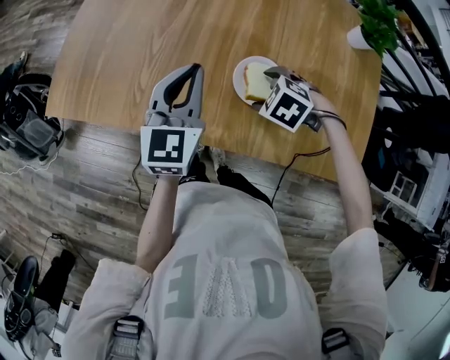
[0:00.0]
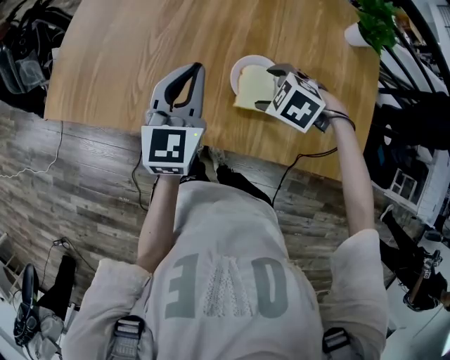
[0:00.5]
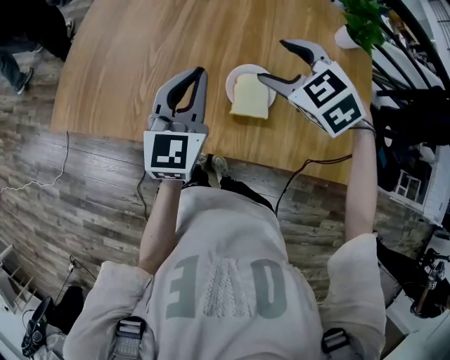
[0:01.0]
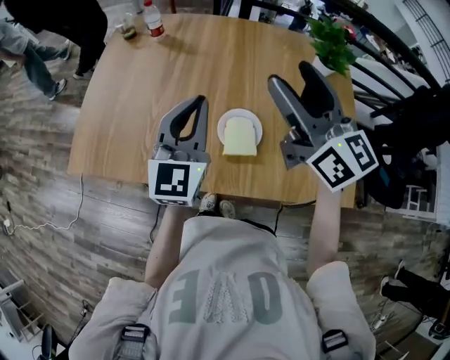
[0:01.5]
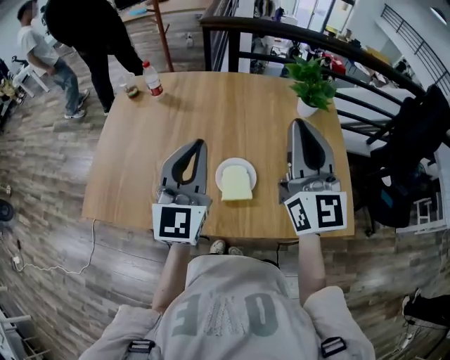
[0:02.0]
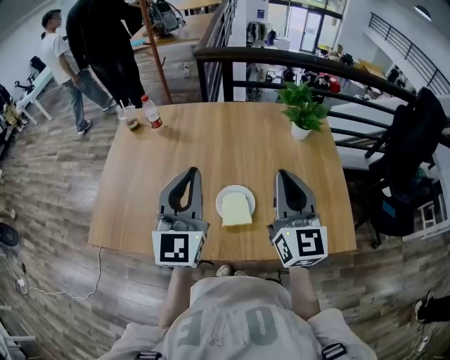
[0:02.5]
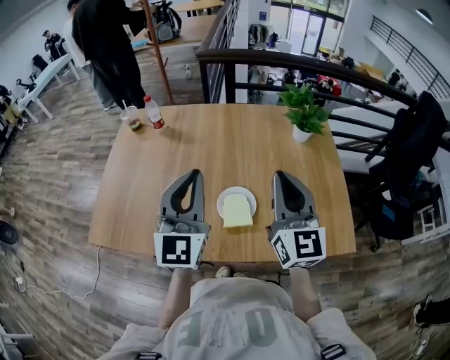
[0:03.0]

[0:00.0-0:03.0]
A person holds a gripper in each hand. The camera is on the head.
0:00.0 to 0:01.5: The right gripper goes roughly 35 cm upward, and angles its fingers upward, by roughly 90 degrees. Meanwhile the left gripper is displaced upward by about 10 cm.
0:01.5 to 0:03.0: The right gripper moves to the right, about 5 cm, changes its angle by some 30 degrees, and closes up, while the left gripper heads upward, covering roughly 10 cm.

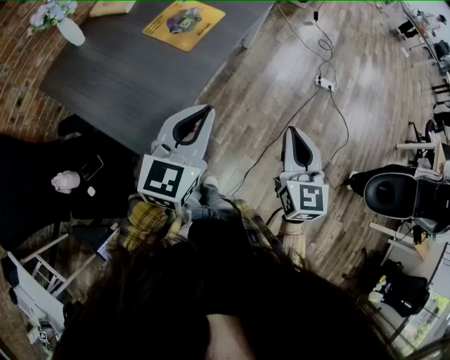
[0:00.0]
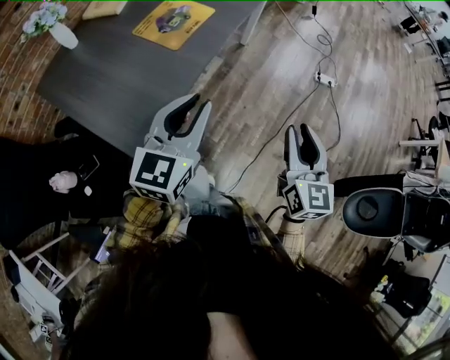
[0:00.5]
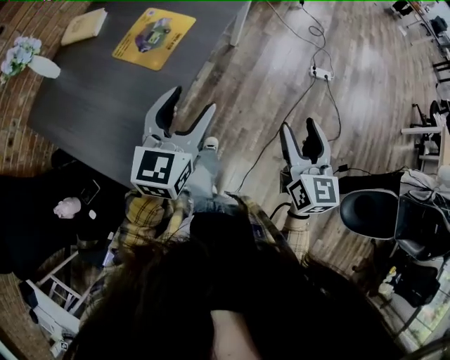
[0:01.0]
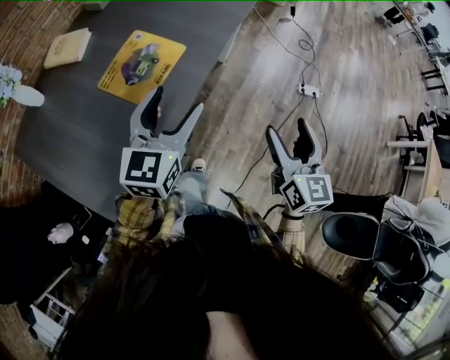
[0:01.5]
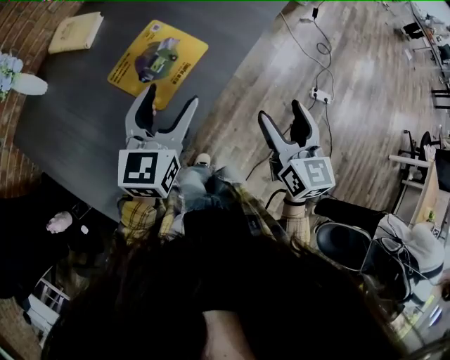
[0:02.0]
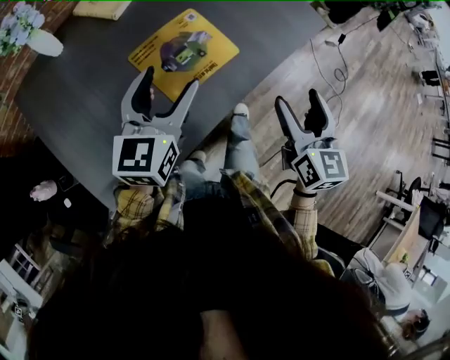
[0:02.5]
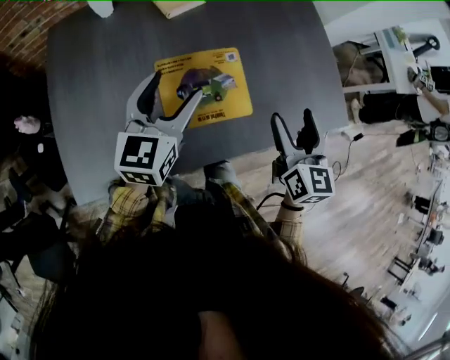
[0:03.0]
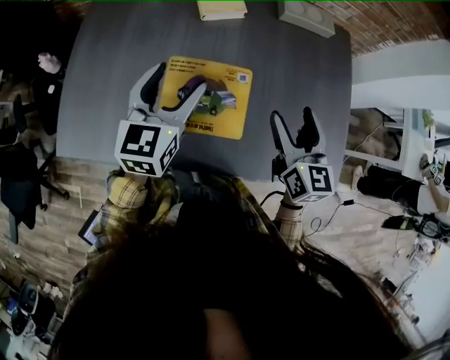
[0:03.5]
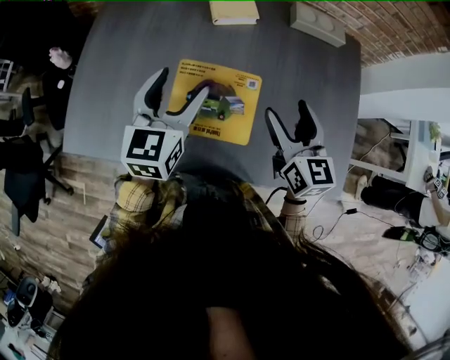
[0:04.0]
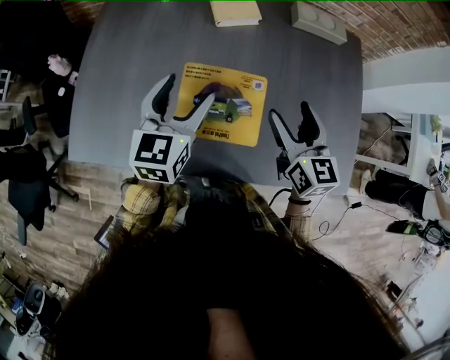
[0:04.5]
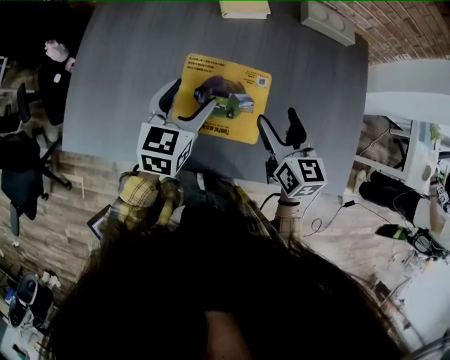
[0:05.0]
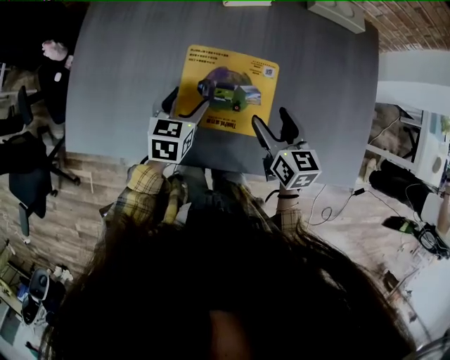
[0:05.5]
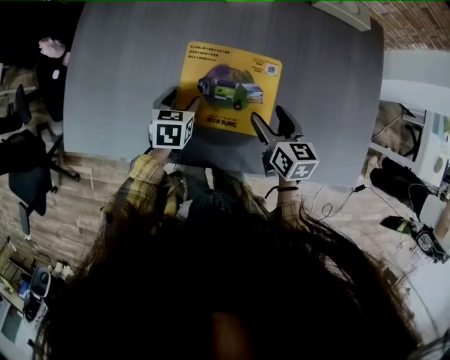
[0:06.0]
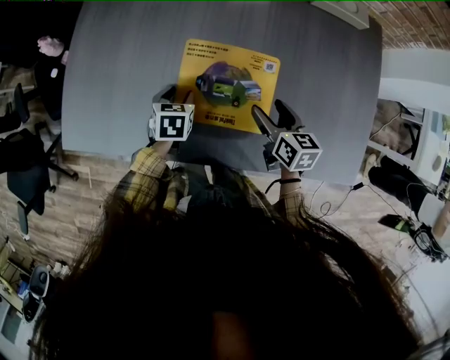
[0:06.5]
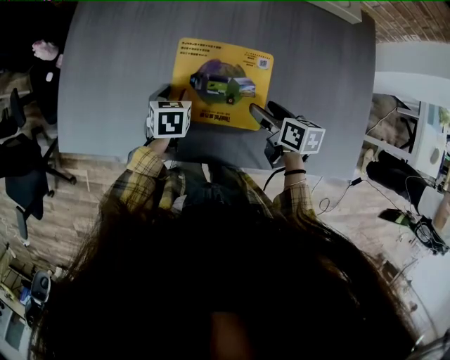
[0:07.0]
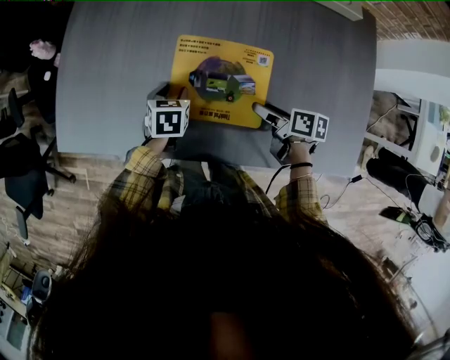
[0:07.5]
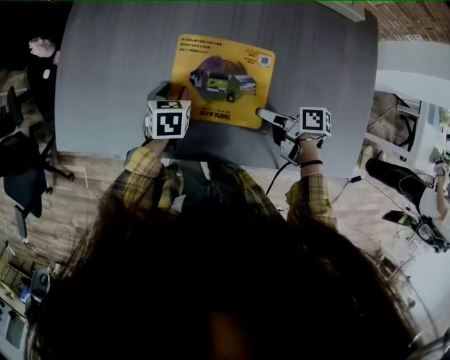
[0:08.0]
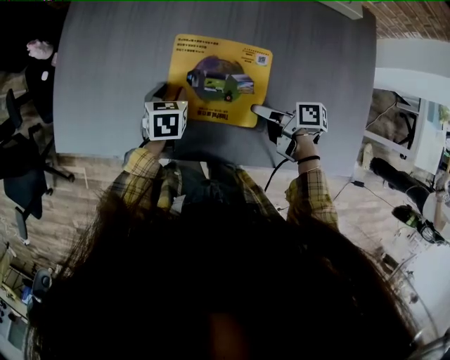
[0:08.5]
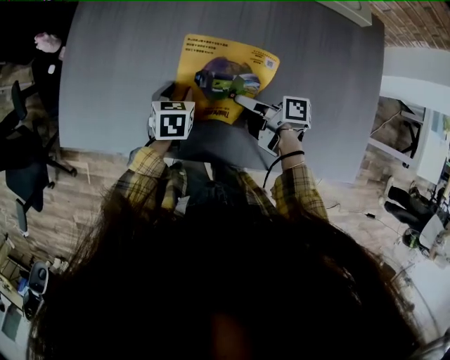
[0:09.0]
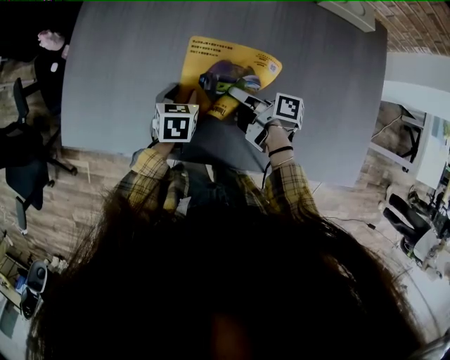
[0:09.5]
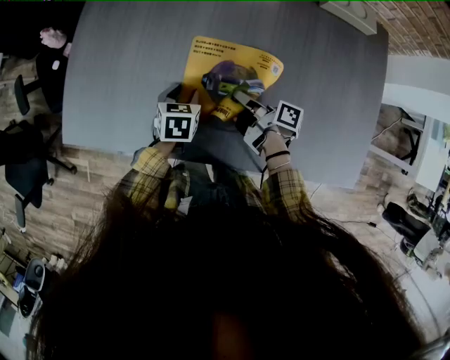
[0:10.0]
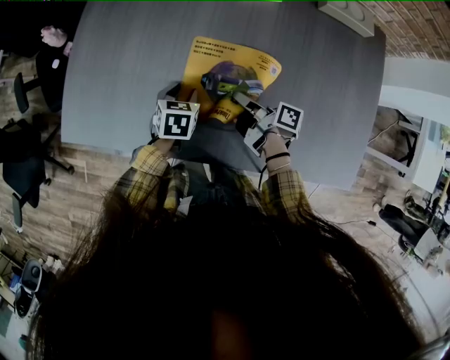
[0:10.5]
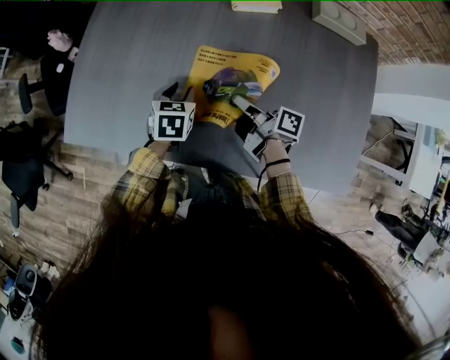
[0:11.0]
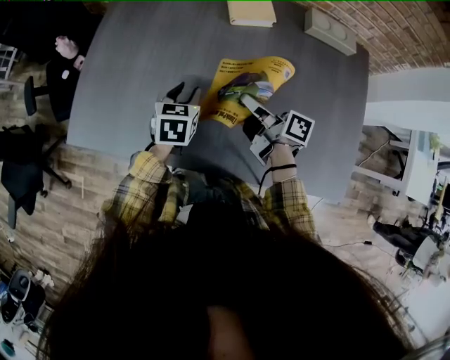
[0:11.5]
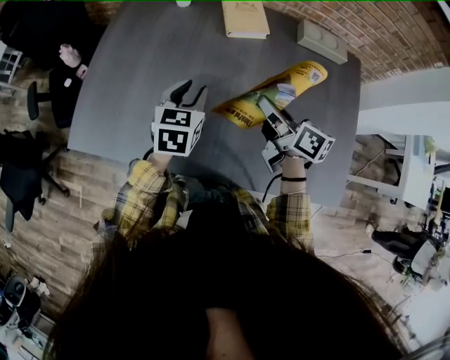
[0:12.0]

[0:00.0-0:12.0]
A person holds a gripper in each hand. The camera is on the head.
0:00.0 to 0:02.0: The two grippers go some 35 cm forward. The right gripper opens up. Meanwhile the left gripper opens.
0:02.0 to 0:04.0: The left gripper shifts by roughly 15 cm, and changes its angle by approximately 60 degrees. The right gripper ends up roughly 40 cm from where it was, and changes its angle by about 70 degrees.
0:04.0 to 0:06.0: Both grippers travel together downward, some 25 cm. The right gripper rotates roughly 30 degrees. The left gripper points its fingers approximately 40 degrees further downward.
0:06.0 to 0:08.0: The right gripper moves downward, roughly 5 cm, and swivels about 50 degrees.
0:08.0 to 0:10.0: The right gripper moves forward and to the left, roughly 10 cm, rotates about 30 degrees, and closes up.
0:10.0 to 0:12.0: Both grippers travel together upward, some 20 cm. The right gripper rotates around the line of its fingers by about 40 degrees, counterclockwise from behind; the left gripper changes its angle by roughly 30 degrees.

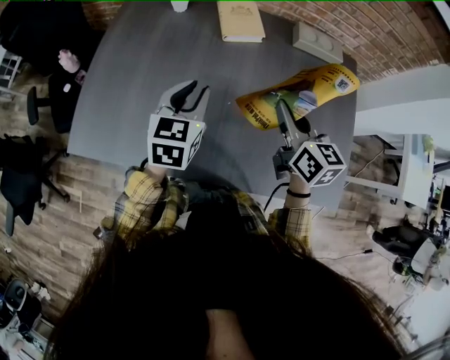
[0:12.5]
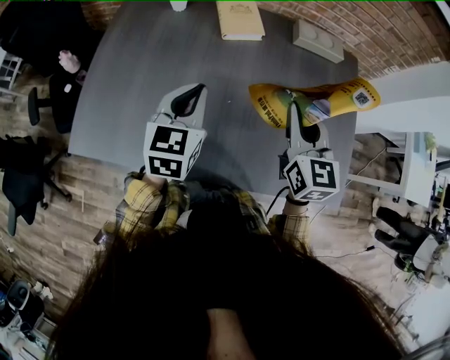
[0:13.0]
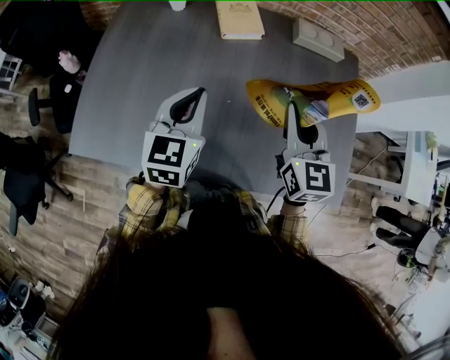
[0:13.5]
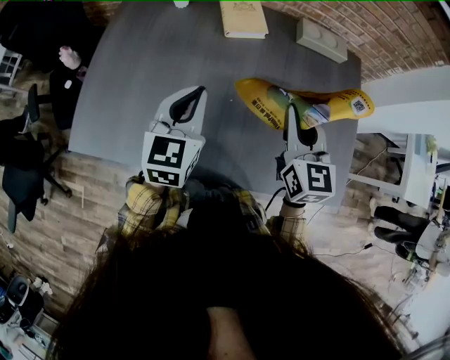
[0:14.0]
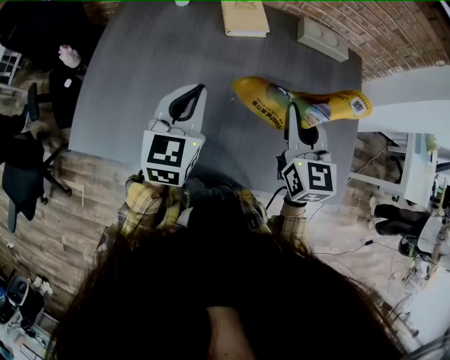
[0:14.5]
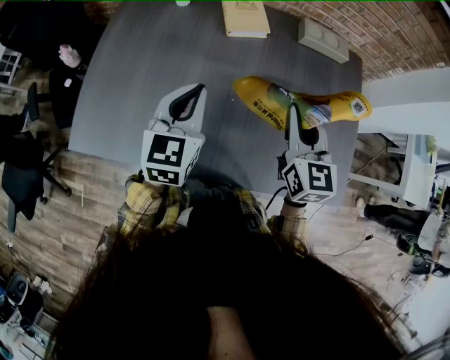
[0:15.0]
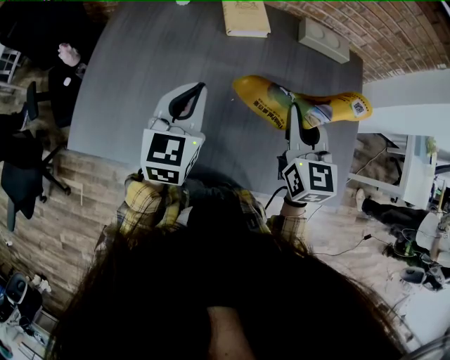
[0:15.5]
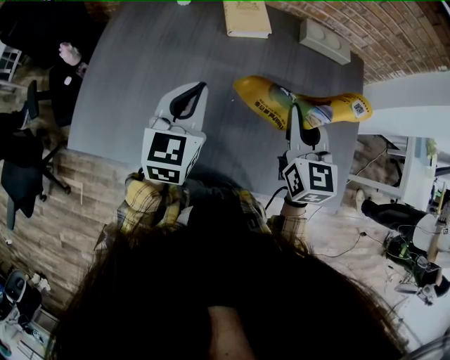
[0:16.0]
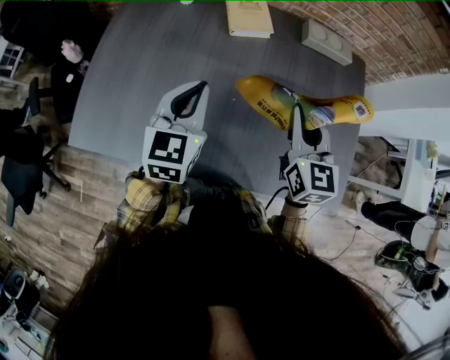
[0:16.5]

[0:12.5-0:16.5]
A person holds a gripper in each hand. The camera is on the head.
0:12.5 to 0:14.5: The right gripper changes its angle by about 20 degrees.
0:14.5 to 0:16.5: The two grippers keep their place.

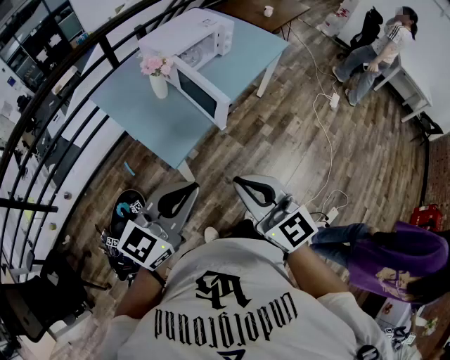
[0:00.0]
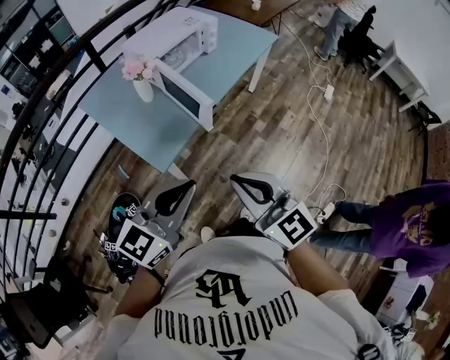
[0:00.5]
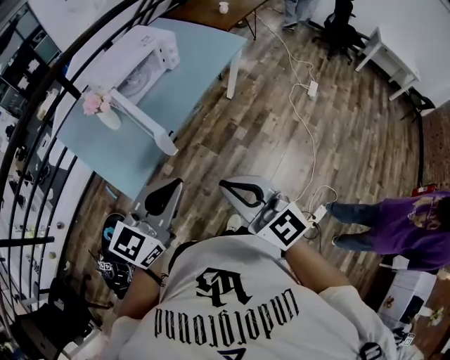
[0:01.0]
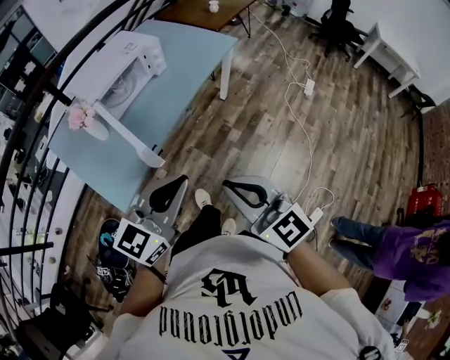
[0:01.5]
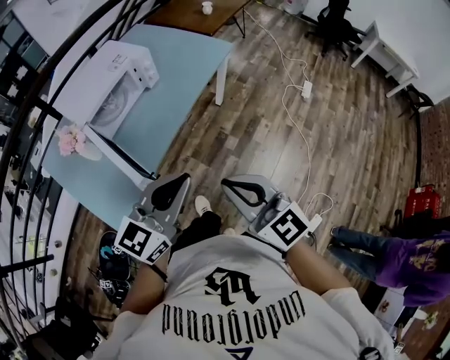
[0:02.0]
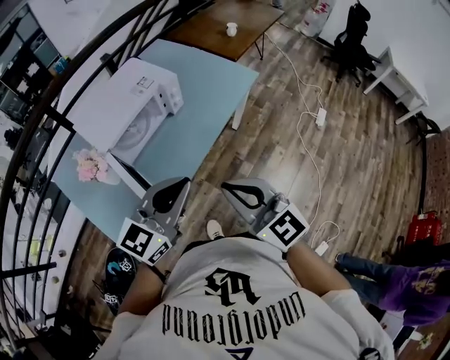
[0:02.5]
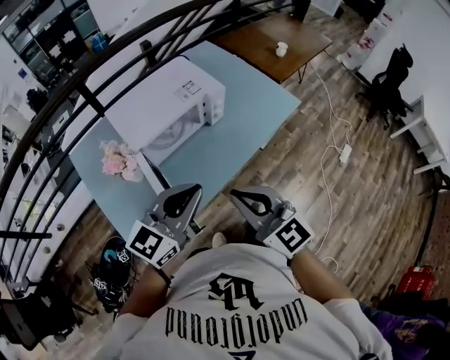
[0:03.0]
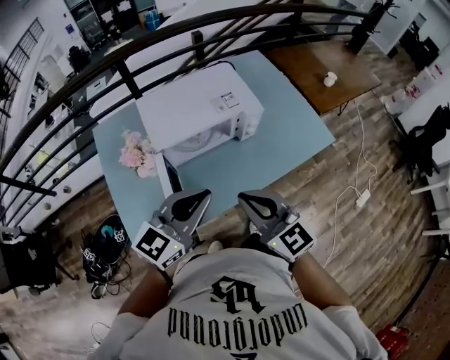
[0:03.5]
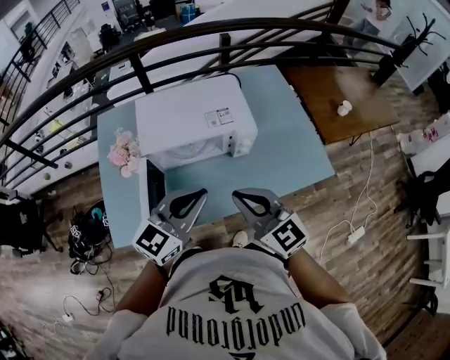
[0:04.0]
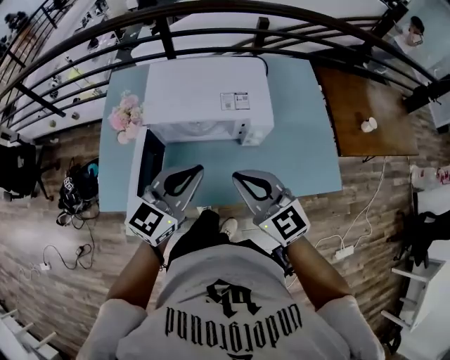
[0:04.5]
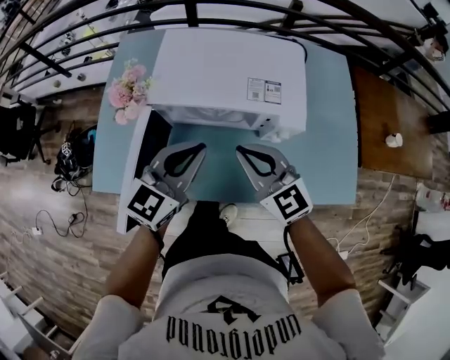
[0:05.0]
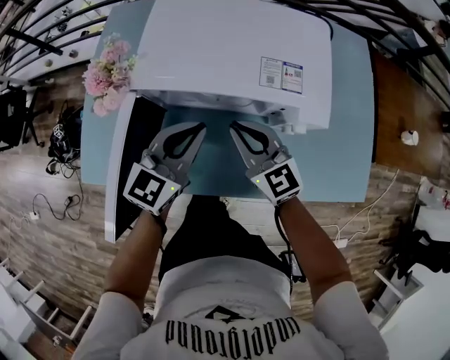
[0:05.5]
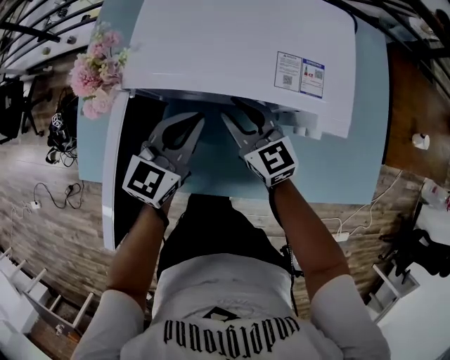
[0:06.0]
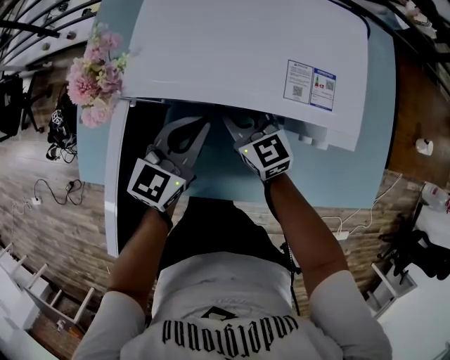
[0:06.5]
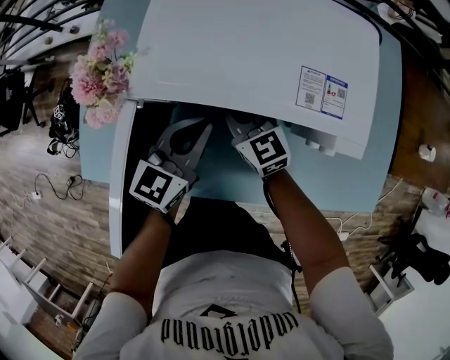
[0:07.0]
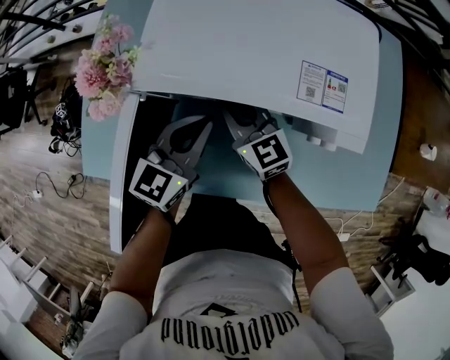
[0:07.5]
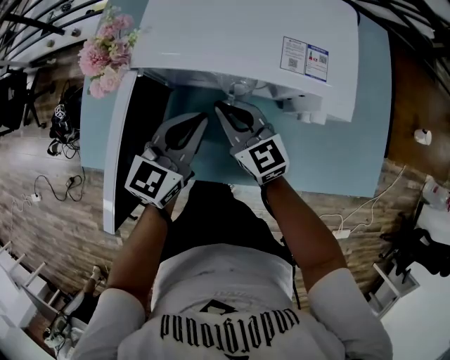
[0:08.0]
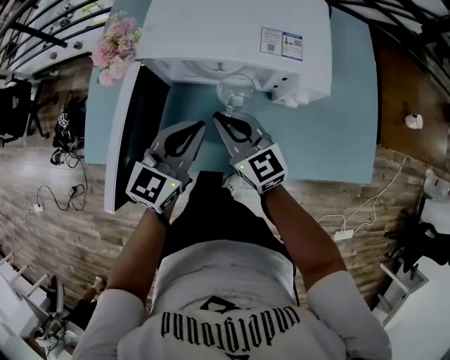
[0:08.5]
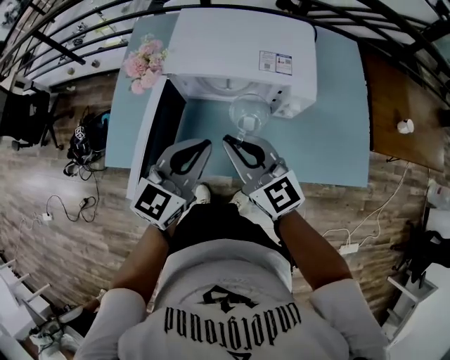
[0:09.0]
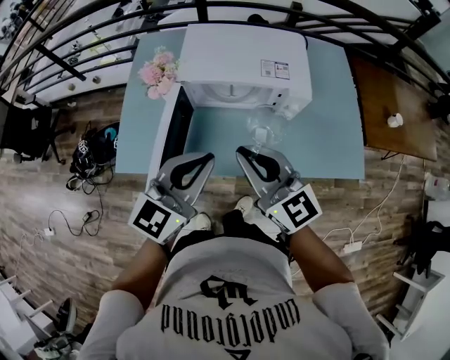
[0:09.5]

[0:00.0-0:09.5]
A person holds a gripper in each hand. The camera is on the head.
0:00.0 to 0:02.0: Both grippers move forward and to the right, approximately 40 cm.
0:02.0 to 0:04.0: The right gripper moves some 40 cm, and rotates about 40 degrees. The left gripper changes place by some 35 cm, and changes its angle by some 40 degrees.
0:04.0 to 0:05.5: The grippers both shift downward and forward by some 25 cm. The left gripper swivels approximately 30 degrees.
0:05.5 to 0:07.5: The right gripper travels forward, to the left and downward by roughly 15 cm, and opens, then closes again. Meanwhile the left gripper travels downward by about 5 cm.
0:07.5 to 0:09.5: Both grippers travel together upward and backward, approximately 35 cm.
